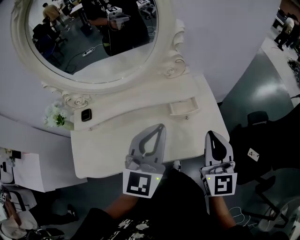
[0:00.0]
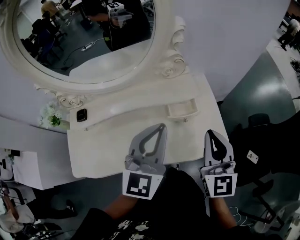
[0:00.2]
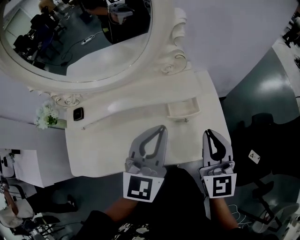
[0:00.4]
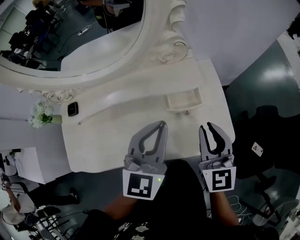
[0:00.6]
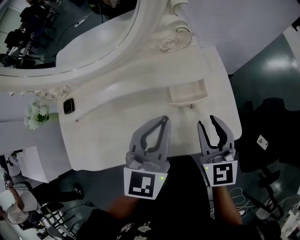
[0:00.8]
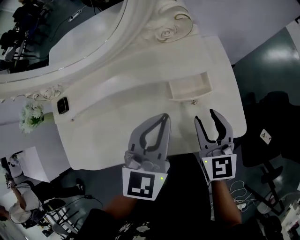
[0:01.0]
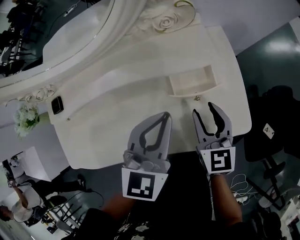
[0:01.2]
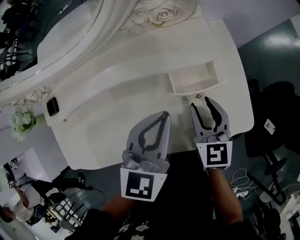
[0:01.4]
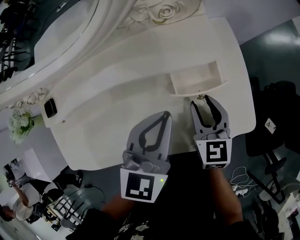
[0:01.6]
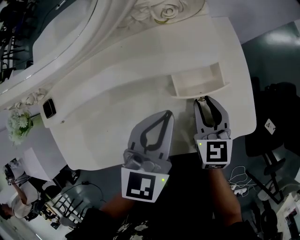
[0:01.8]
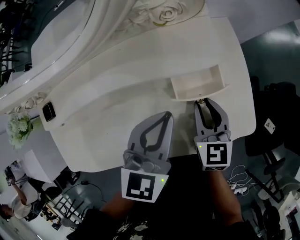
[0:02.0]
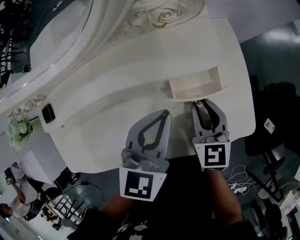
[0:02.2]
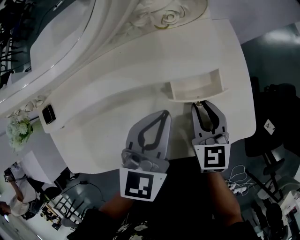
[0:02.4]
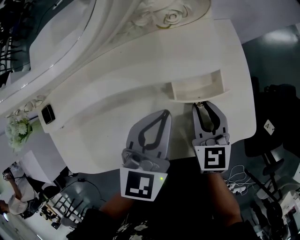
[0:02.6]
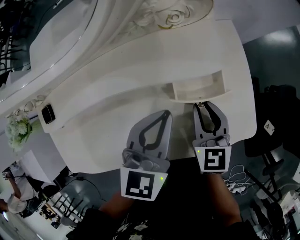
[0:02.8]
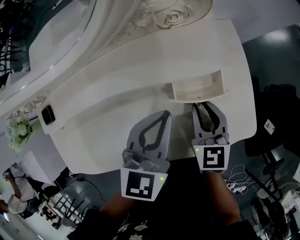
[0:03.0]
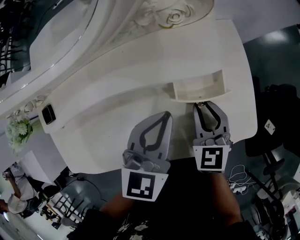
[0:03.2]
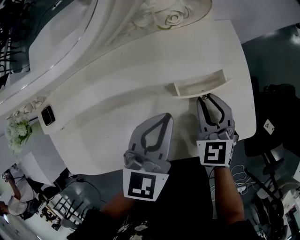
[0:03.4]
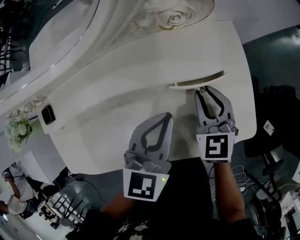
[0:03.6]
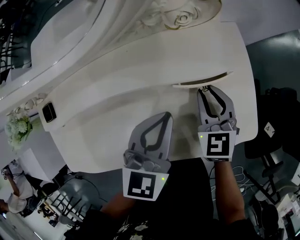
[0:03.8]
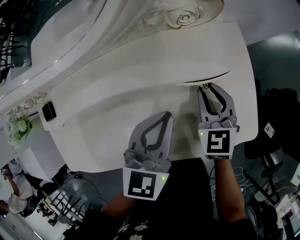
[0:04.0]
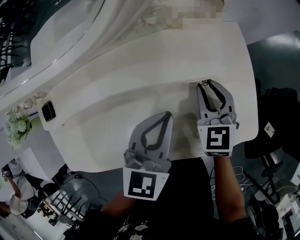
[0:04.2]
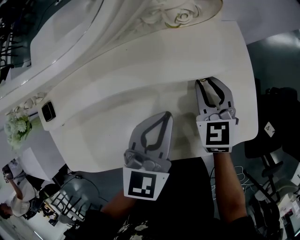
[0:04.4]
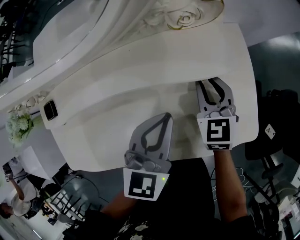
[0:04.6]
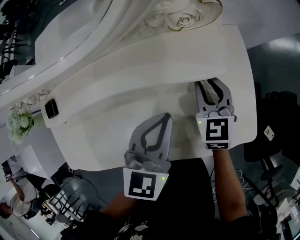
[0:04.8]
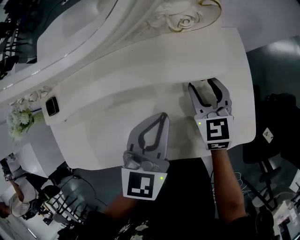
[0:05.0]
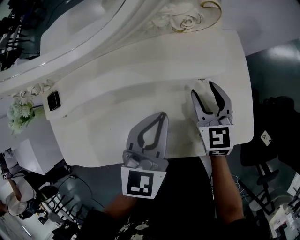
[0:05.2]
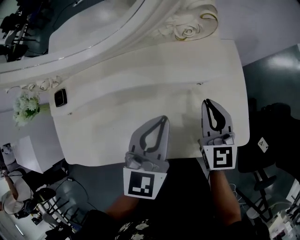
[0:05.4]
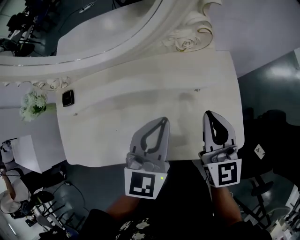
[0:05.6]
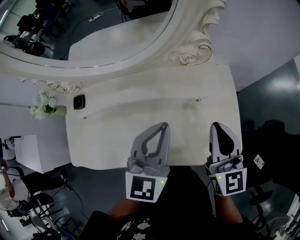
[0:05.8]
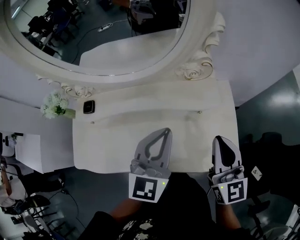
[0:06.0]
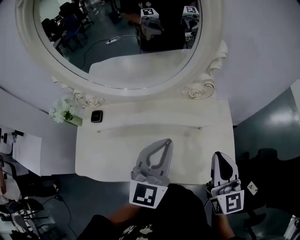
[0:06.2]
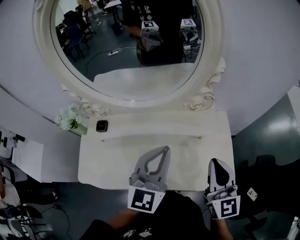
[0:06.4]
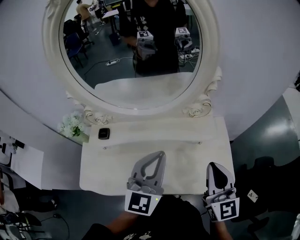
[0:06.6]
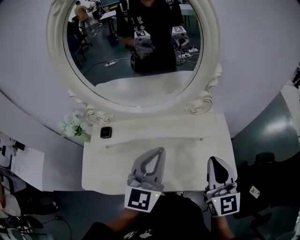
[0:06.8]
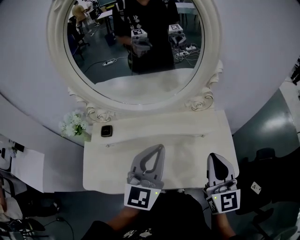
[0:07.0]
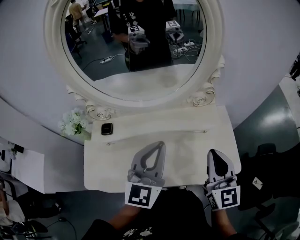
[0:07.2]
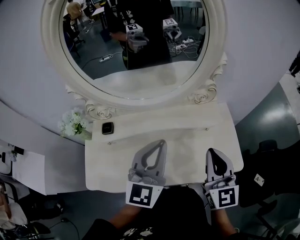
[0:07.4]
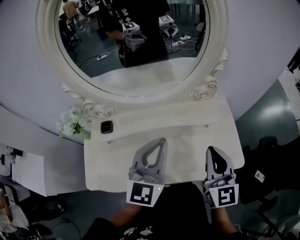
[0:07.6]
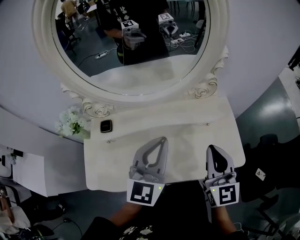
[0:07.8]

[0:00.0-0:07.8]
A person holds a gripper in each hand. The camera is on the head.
0:00.0 to 0:01.6: The grippers both shift downward by about 20 cm. The left gripper swivels some 20 degrees. The right gripper tips its fingers downward by some 30 degrees, and opens up.
0:01.6 to 0:03.2: There are only small adjustments of the grippers.
0:03.2 to 0:04.6: The right gripper travels forward by about 10 cm.
0:04.6 to 0:06.2: The right gripper shifts some 25 cm upward and backward, tips its fingers upward by approximately 30 degrees, and opens, then closes again, while the left gripper travels upward by roughly 15 cm, and swivels approximately 20 degrees.
0:06.2 to 0:07.8: Both grippers move to the left, some 10 cm.

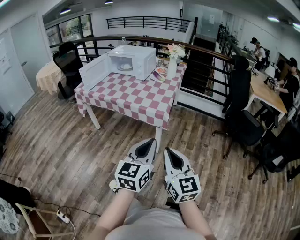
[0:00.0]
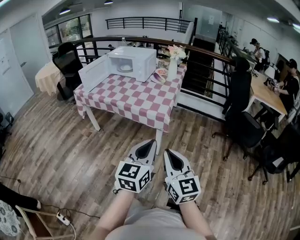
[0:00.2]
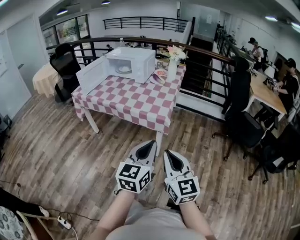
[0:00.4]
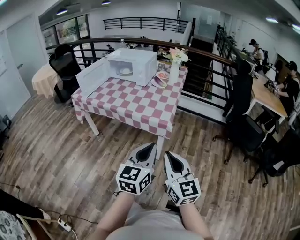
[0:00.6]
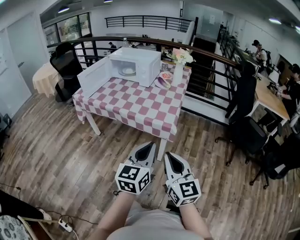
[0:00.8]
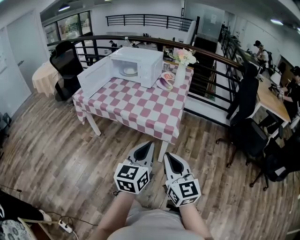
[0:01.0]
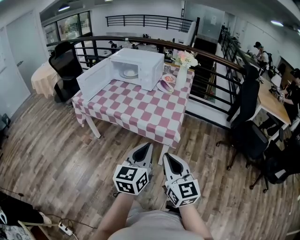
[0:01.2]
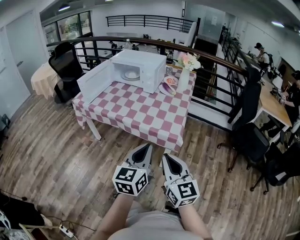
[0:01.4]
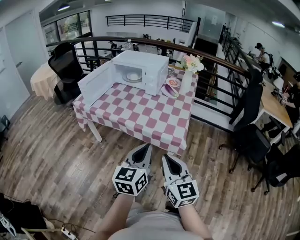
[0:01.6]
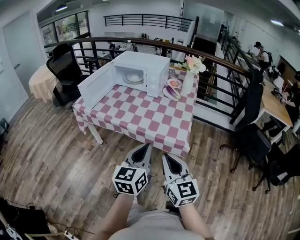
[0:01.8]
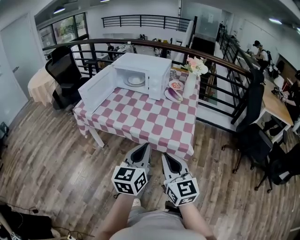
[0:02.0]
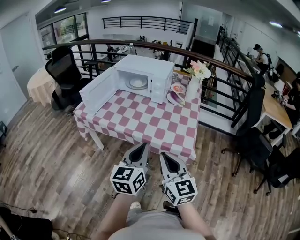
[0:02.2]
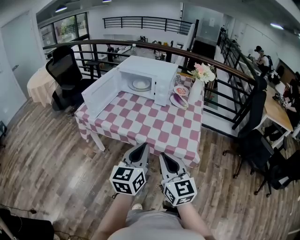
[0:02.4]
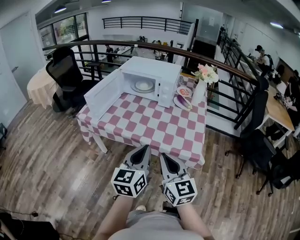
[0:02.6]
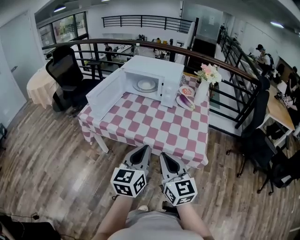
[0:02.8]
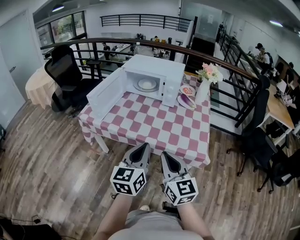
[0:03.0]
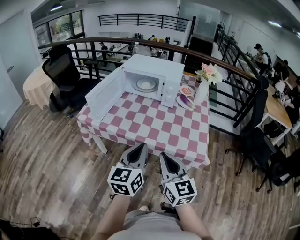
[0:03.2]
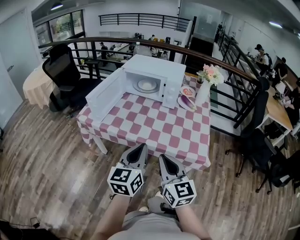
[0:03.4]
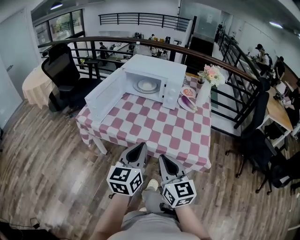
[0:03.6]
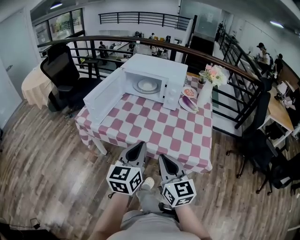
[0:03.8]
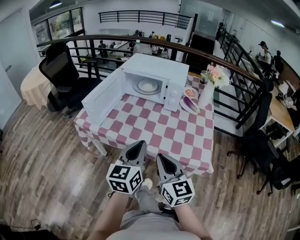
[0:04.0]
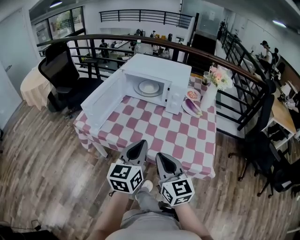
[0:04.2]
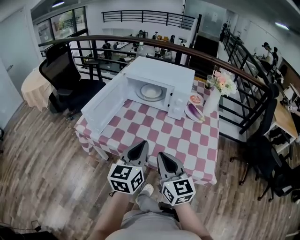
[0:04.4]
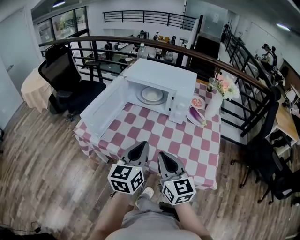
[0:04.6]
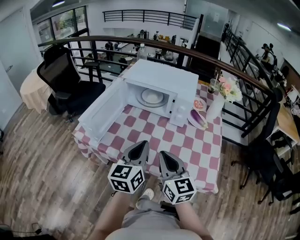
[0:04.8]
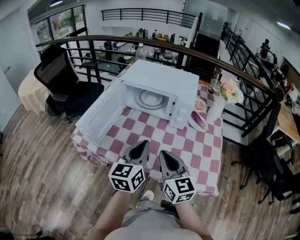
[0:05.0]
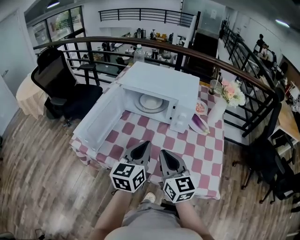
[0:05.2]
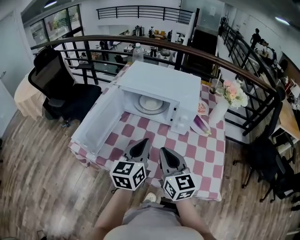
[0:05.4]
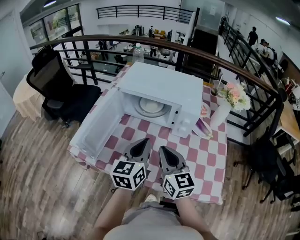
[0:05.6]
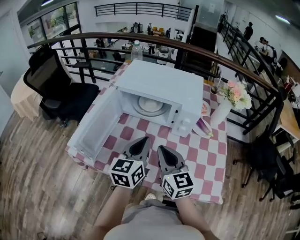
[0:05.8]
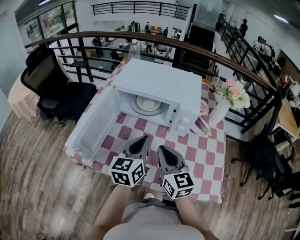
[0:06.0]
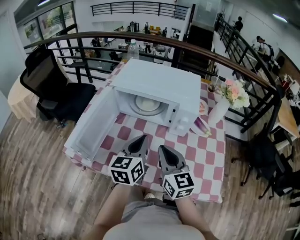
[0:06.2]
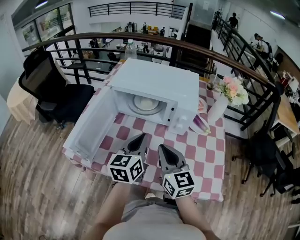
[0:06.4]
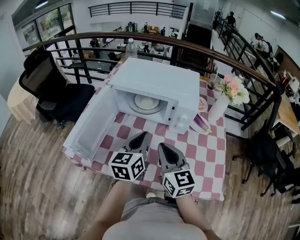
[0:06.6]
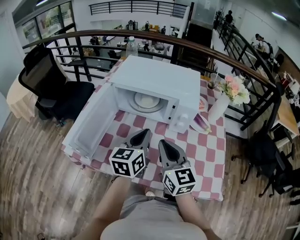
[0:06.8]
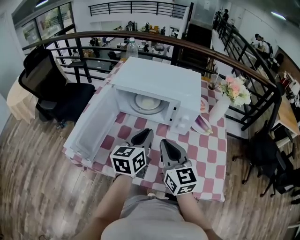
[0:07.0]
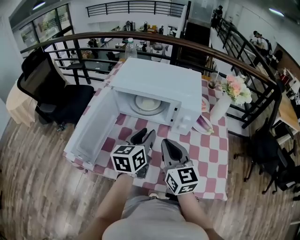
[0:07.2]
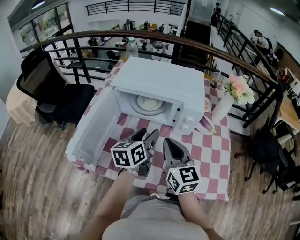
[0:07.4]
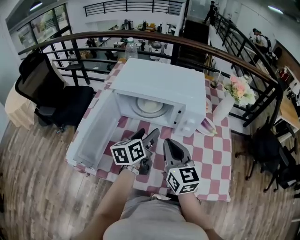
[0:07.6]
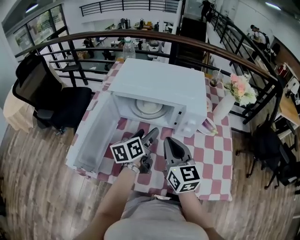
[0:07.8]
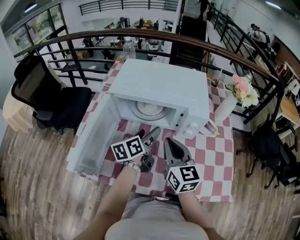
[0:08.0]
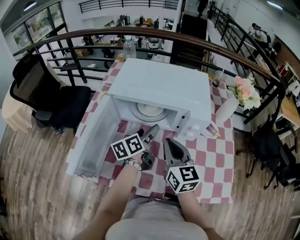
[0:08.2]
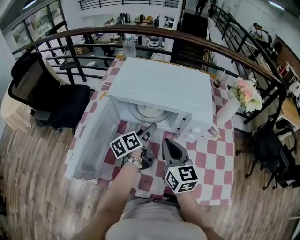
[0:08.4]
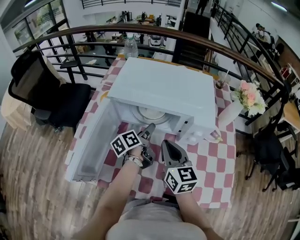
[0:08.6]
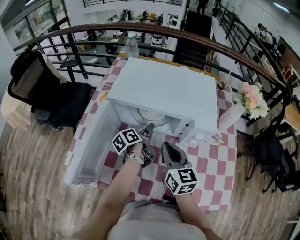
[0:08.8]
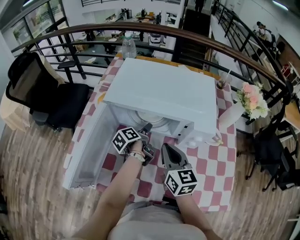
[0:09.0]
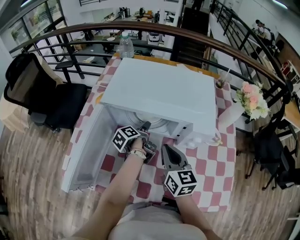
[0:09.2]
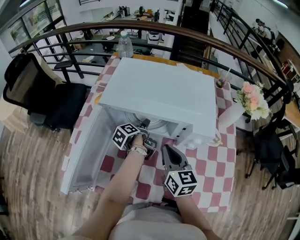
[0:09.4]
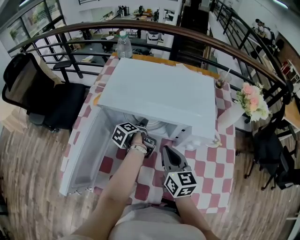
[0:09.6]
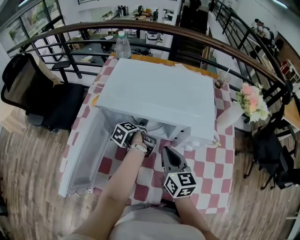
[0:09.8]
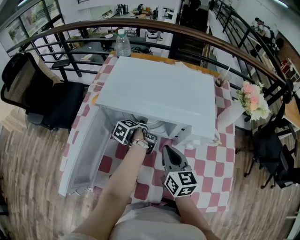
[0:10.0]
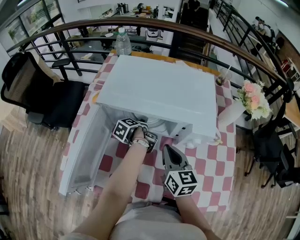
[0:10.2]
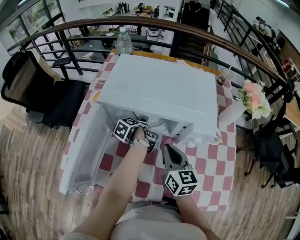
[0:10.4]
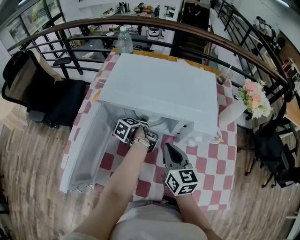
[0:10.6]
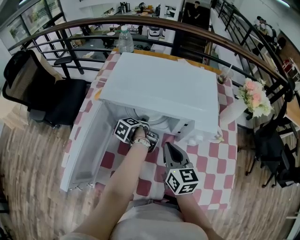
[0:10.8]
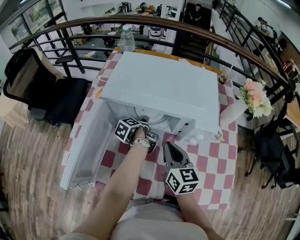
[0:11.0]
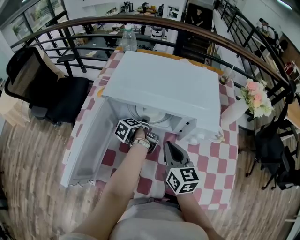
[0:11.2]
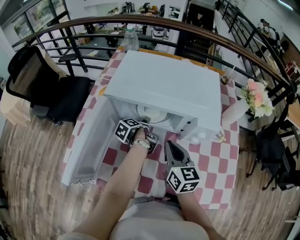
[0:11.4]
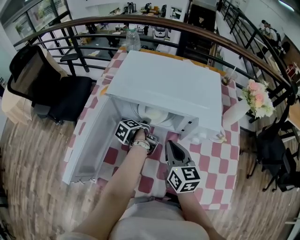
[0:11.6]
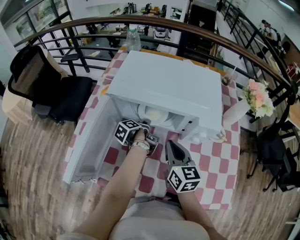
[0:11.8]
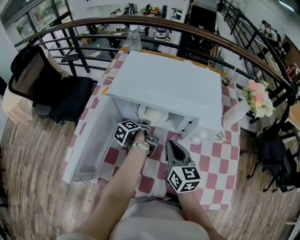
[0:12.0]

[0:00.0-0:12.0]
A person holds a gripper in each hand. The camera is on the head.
0:00.0 to 0:01.6: The grippers both shift forward and to the left by some 25 cm.
0:01.6 to 0:03.0: The grippers both shift to the left and forward by approximately 20 cm.
0:03.0 to 0:04.4: Both grippers travel together forward, roughly 15 cm.
0:04.4 to 0:06.0: The two grippers go approximately 20 cm forward.
0:06.0 to 0:07.6: The left gripper is displaced forward and downward by roughly 10 cm, rotates some 20 degrees, and opens; the right gripper is displaced forward by some 5 cm.
0:07.6 to 0:09.0: The right gripper is displaced forward and downward by some 10 cm. The left gripper heads downward and forward, covering some 20 cm, and twists approximately 40 degrees counterclockwise, seen from behind.
0:09.0 to 0:10.4: The left gripper changes place by about 5 cm.
0:10.4 to 0:12.0: The left gripper closes up.

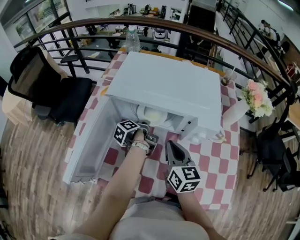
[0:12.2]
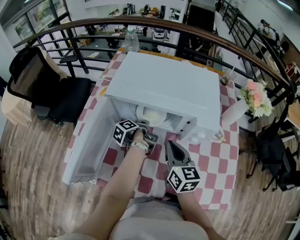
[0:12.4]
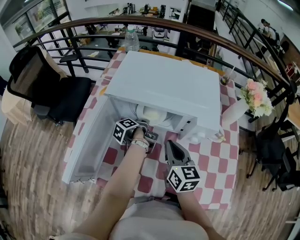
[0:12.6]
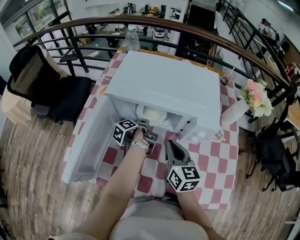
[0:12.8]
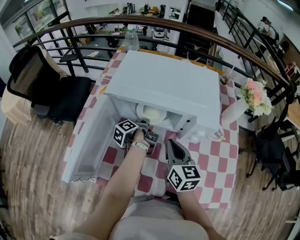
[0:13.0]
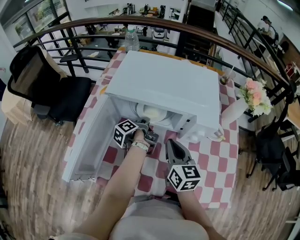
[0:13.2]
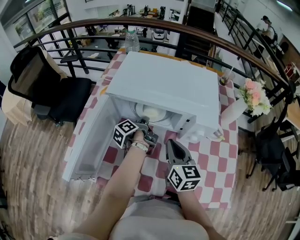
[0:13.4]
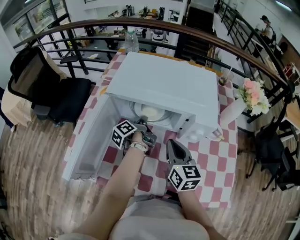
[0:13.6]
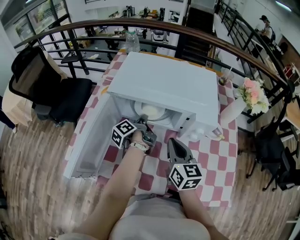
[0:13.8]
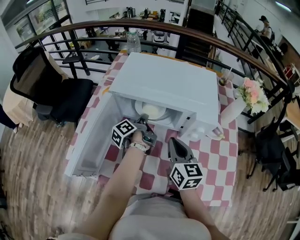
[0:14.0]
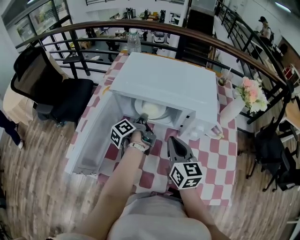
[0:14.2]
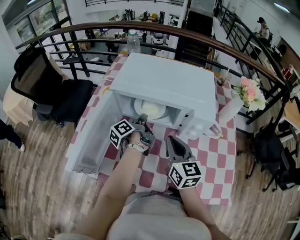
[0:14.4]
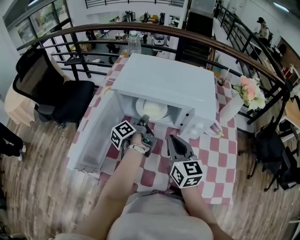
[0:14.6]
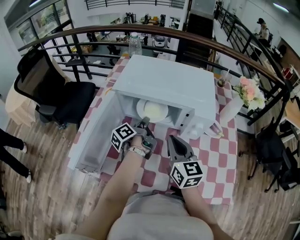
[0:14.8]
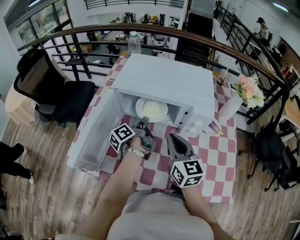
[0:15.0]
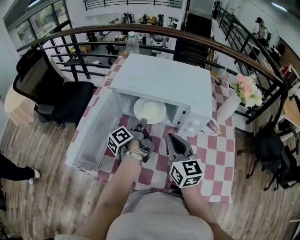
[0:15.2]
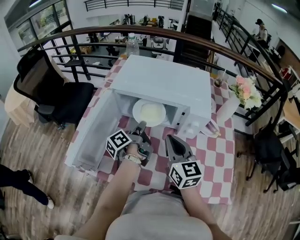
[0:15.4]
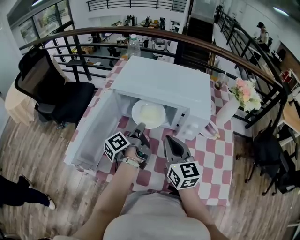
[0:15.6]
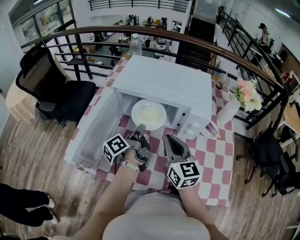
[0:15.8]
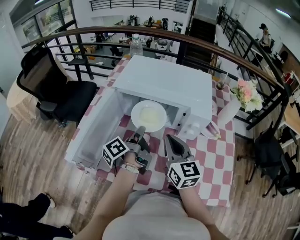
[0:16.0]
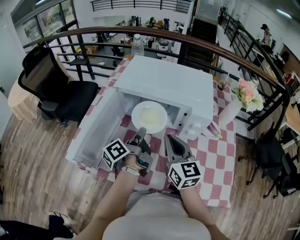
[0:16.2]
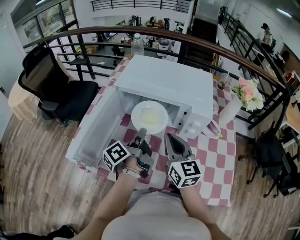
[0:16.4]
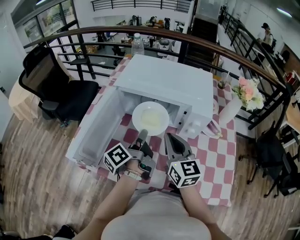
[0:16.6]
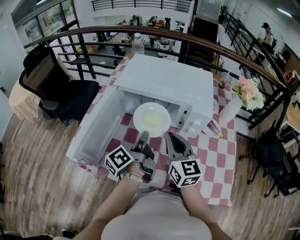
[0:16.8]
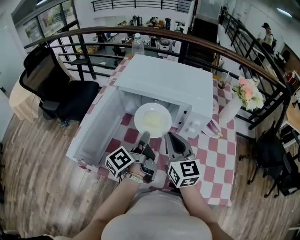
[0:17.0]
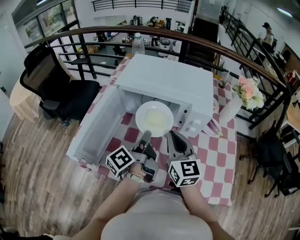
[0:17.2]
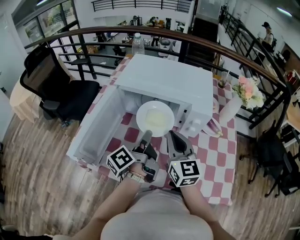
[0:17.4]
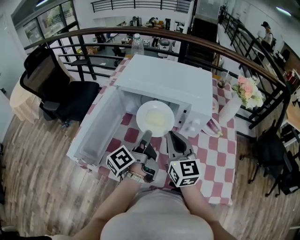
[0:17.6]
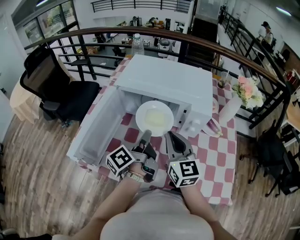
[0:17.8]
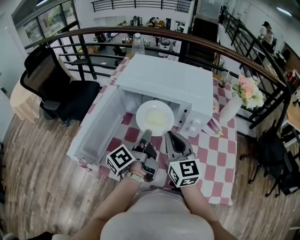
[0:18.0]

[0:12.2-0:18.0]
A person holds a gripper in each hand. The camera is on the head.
0:12.2 to 0:13.6: The grippers stay close to where they were, moving slightly.
0:13.6 to 0:15.0: The left gripper moves backward and upward, approximately 10 cm. The right gripper moves approximately 5 cm.
0:15.0 to 0:16.6: The left gripper travels backward and upward by approximately 10 cm.
0:16.6 to 0:18.0: There are only small adjustments of the grippers.
